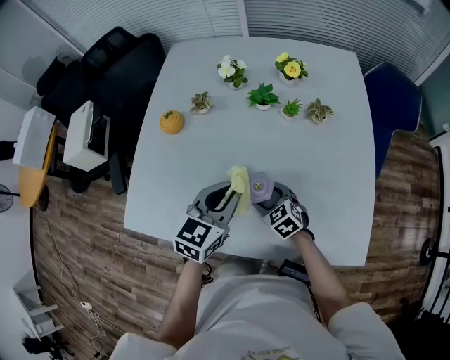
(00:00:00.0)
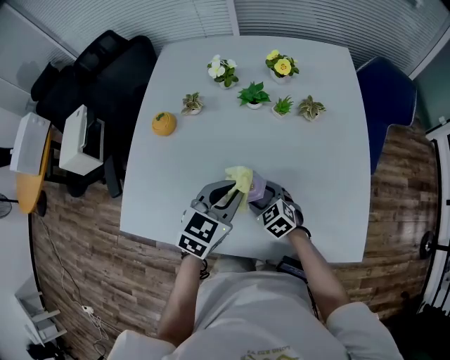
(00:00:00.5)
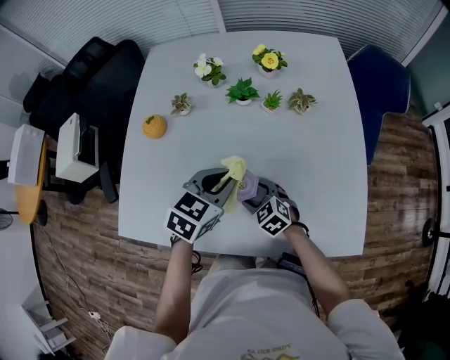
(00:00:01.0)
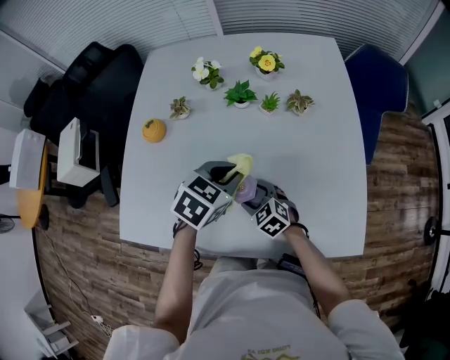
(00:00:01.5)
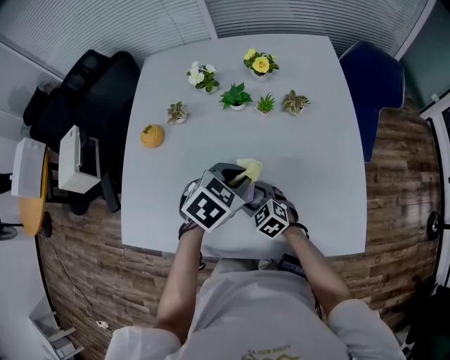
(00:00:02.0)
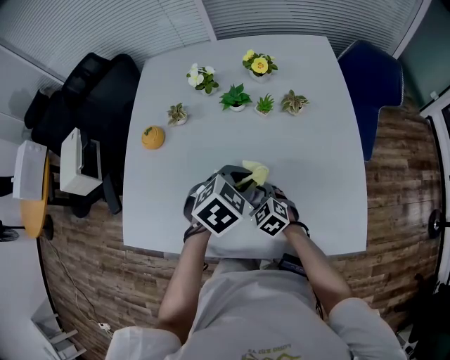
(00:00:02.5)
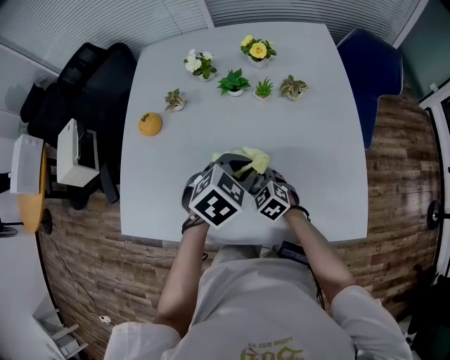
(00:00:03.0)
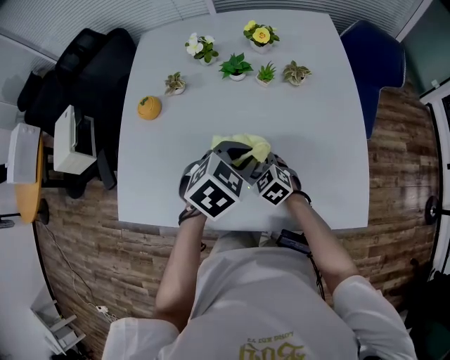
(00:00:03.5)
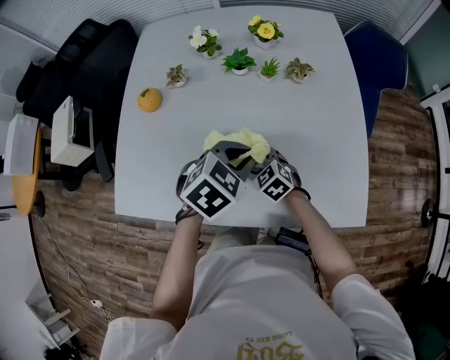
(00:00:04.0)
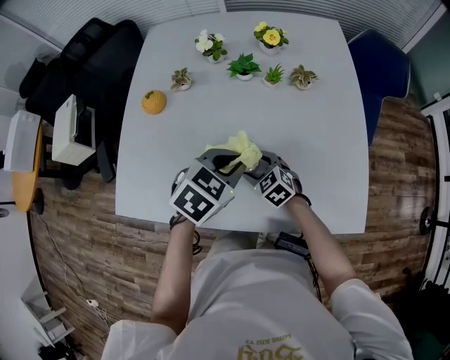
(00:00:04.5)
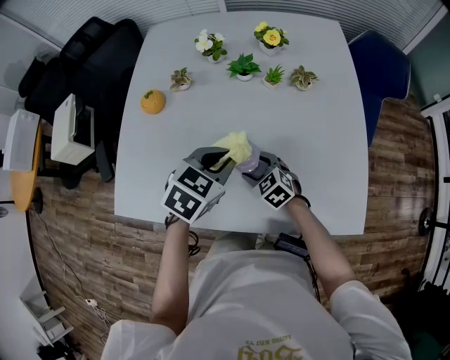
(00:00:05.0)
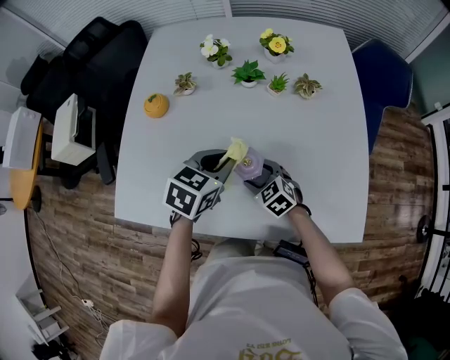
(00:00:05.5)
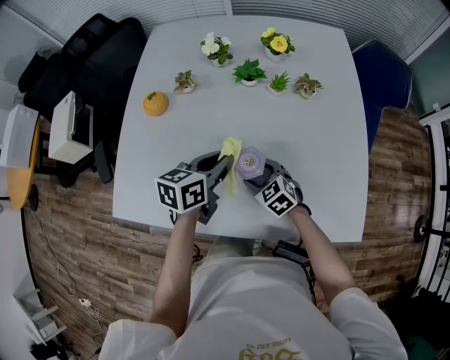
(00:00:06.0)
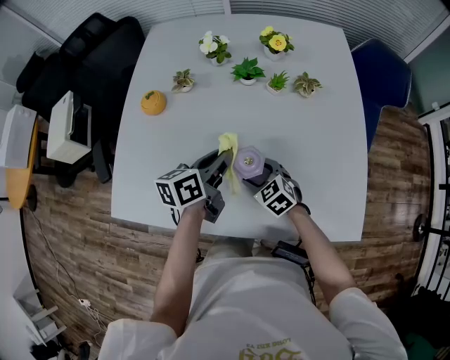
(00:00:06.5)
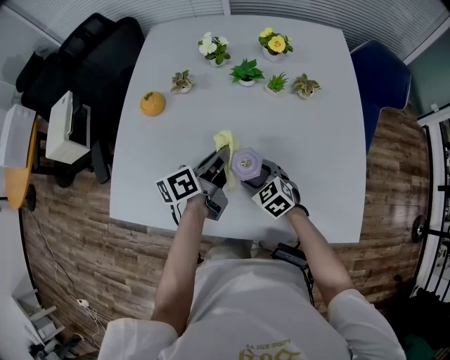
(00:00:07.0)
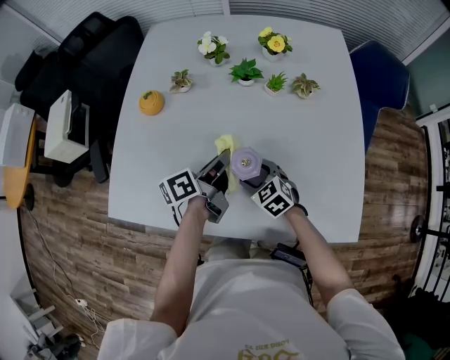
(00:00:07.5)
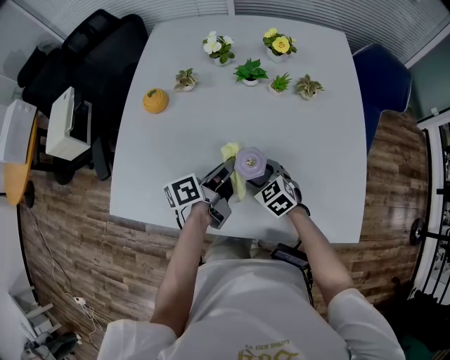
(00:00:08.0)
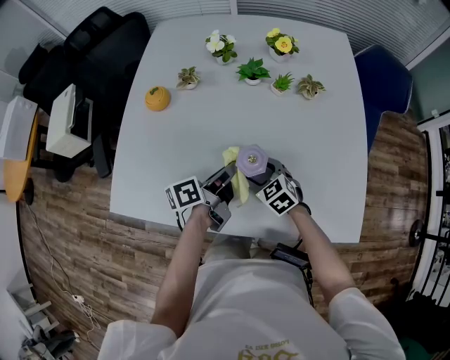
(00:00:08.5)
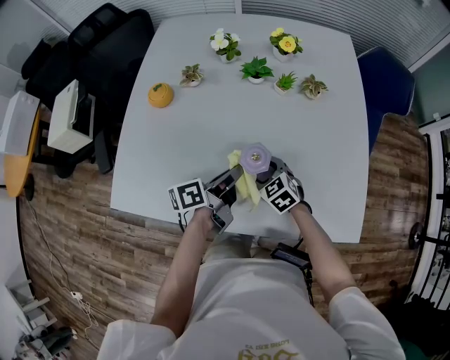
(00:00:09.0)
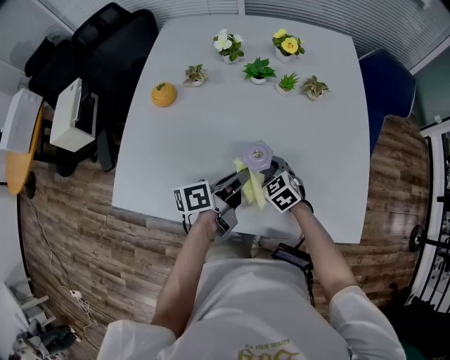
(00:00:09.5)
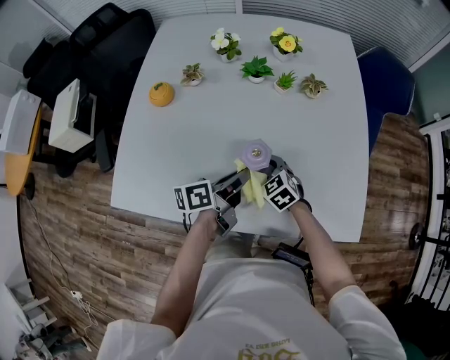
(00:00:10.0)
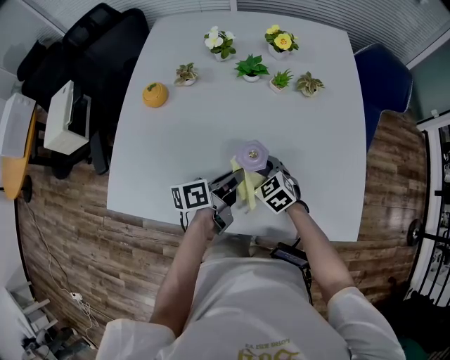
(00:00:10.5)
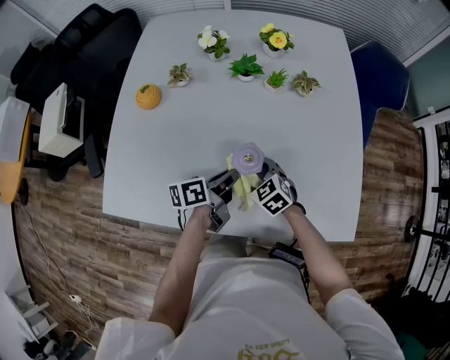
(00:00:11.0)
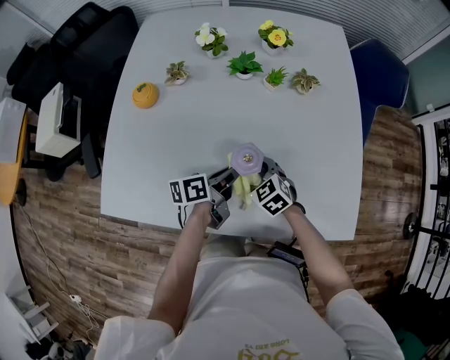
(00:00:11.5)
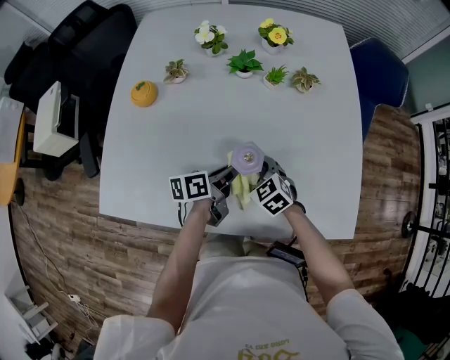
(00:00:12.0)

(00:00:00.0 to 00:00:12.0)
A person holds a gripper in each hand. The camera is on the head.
00:00:00.0 - 00:00:02.0: The left gripper goes some 10 cm to the right, and changes its angle by about 40 degrees.
00:00:02.0 - 00:00:04.0: The left gripper is displaced backward by roughly 5 cm.
00:00:04.0 - 00:00:06.0: The left gripper moves to the left, roughly 10 cm, and twists approximately 40 degrees counterclockwise, seen from behind.
00:00:06.0 - 00:00:08.0: The left gripper rotates roughly 40 degrees.
00:00:08.0 - 00:00:10.0: The left gripper moves roughly 5 cm.
00:00:10.0 - 00:00:12.0: The left gripper goes some 5 cm downward.

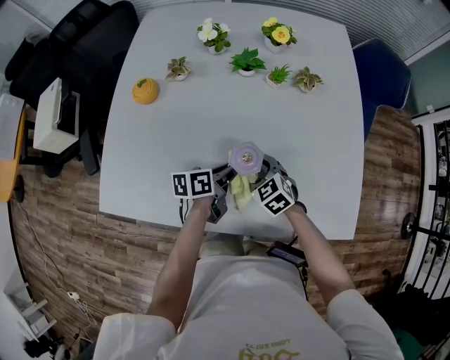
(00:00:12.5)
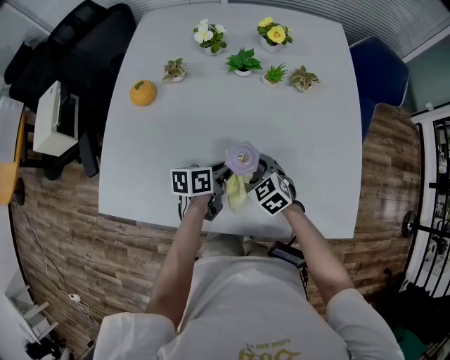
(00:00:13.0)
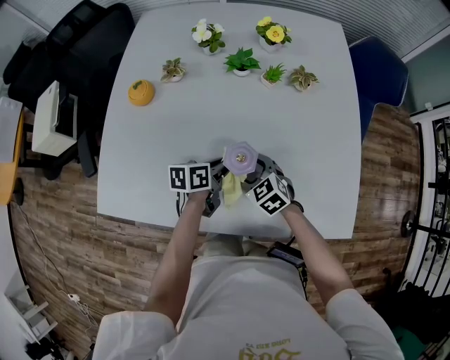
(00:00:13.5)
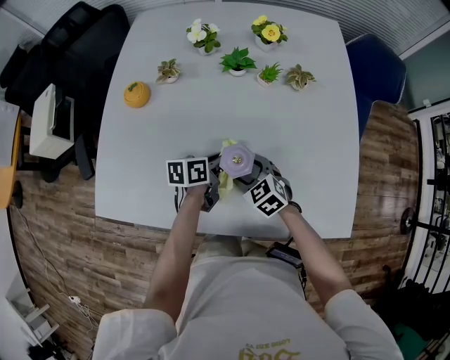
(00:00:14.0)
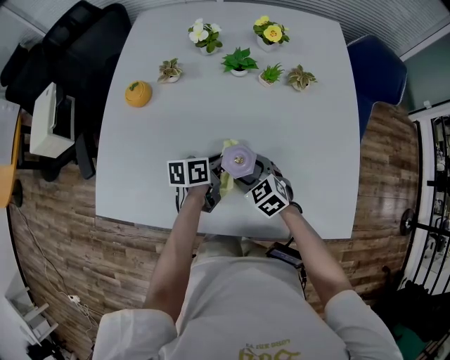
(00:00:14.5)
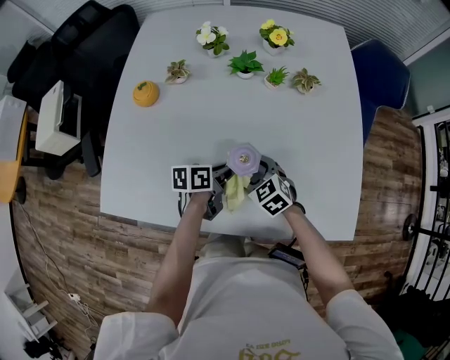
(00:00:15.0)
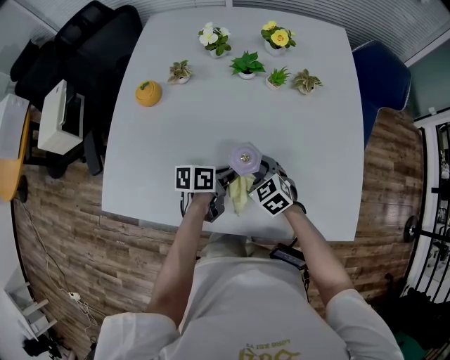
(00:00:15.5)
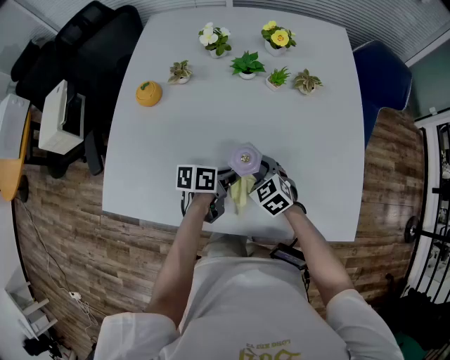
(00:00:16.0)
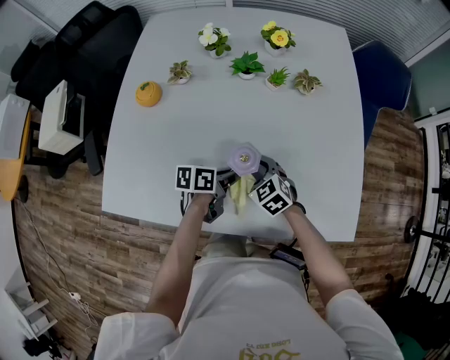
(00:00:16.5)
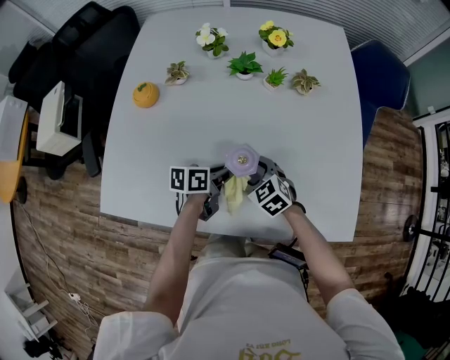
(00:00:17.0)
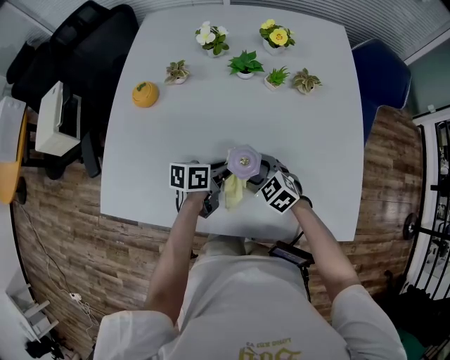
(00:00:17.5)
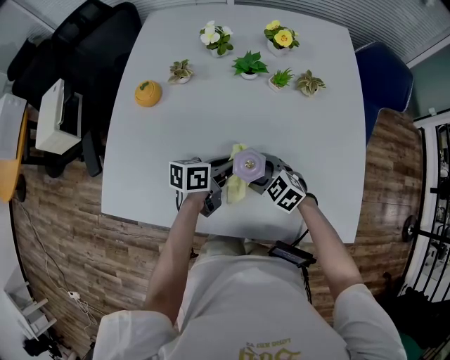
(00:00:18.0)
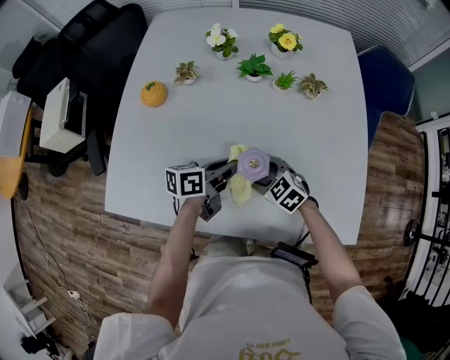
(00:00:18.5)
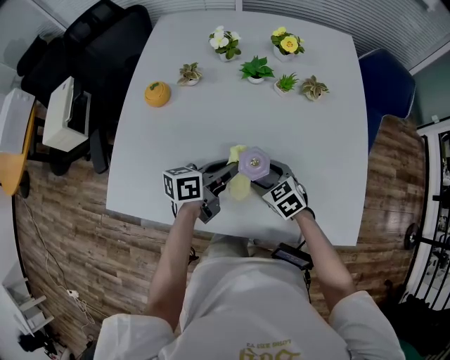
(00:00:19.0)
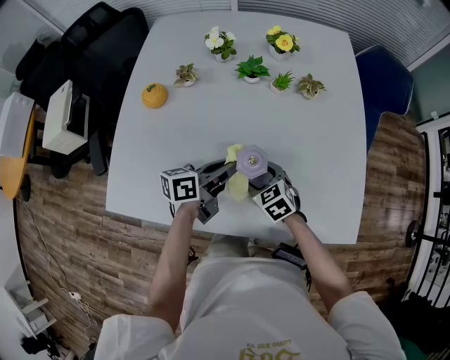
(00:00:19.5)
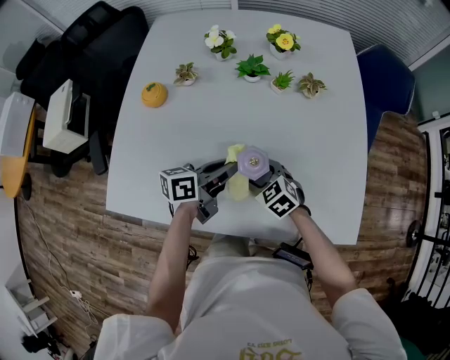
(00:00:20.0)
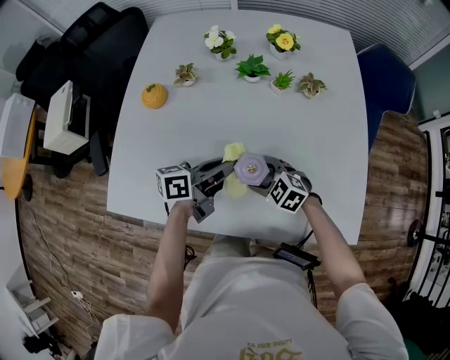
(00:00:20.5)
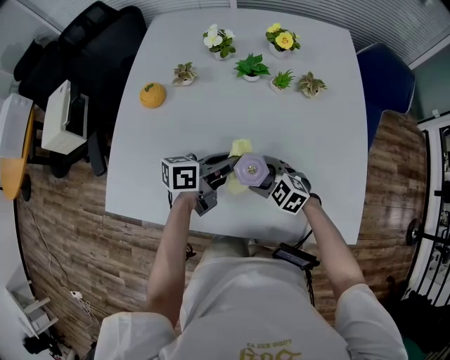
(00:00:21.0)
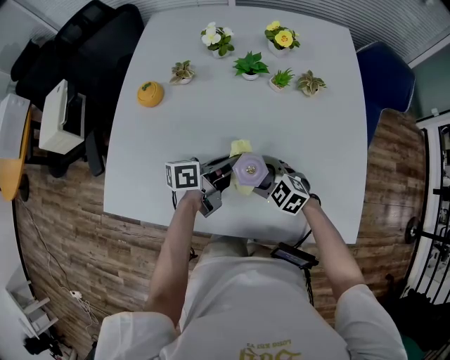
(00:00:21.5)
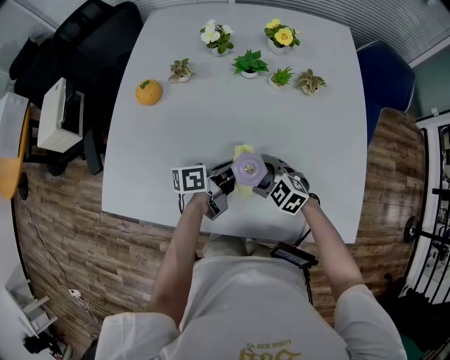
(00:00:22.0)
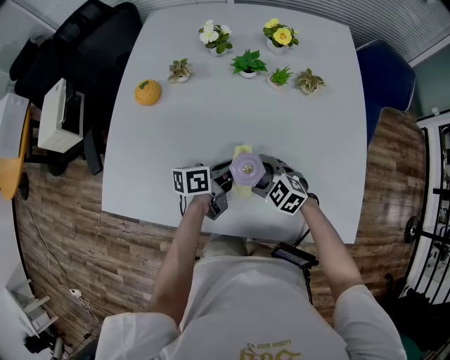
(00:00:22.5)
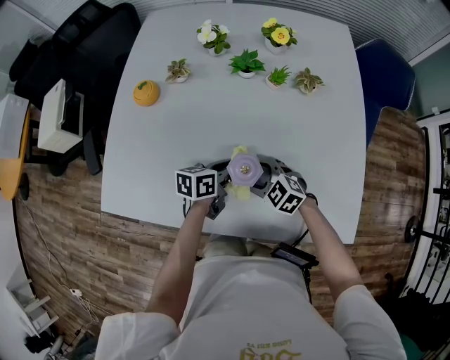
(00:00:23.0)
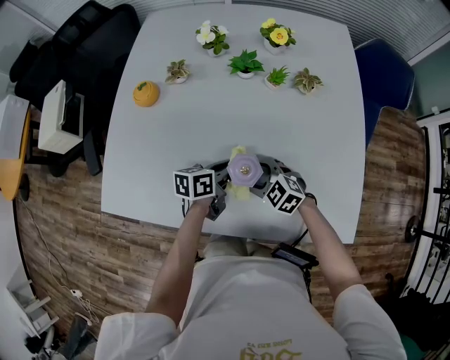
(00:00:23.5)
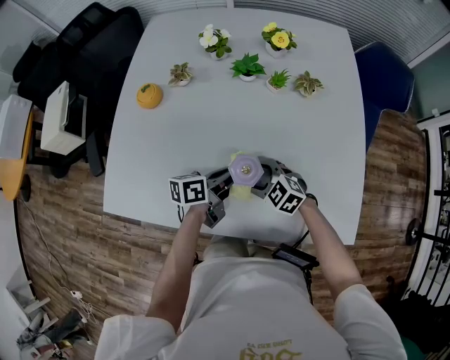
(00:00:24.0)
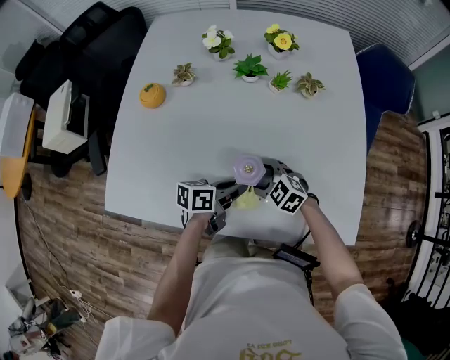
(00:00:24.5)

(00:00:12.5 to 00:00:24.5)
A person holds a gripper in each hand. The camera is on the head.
00:00:12.5 - 00:00:14.5: The grippers make only small movements.
00:00:14.5 - 00:00:16.5: The left gripper shifts approximately 5 cm backward.
00:00:16.5 - 00:00:18.5: The left gripper travels upward by about 5 cm.
00:00:18.5 - 00:00:20.5: The grippers make only small movements.
00:00:20.5 - 00:00:22.5: The left gripper moves downward, approximately 10 cm.
00:00:22.5 - 00:00:24.5: The left gripper moves approximately 5 cm.

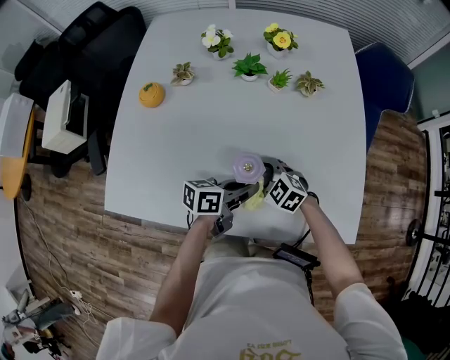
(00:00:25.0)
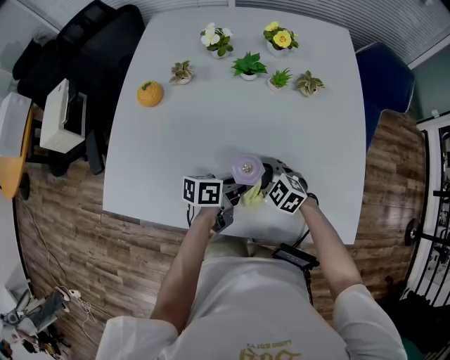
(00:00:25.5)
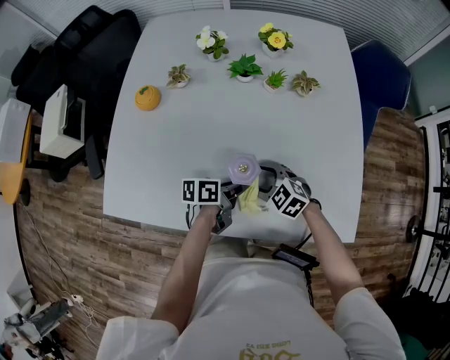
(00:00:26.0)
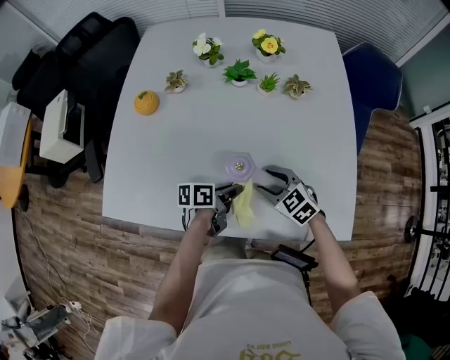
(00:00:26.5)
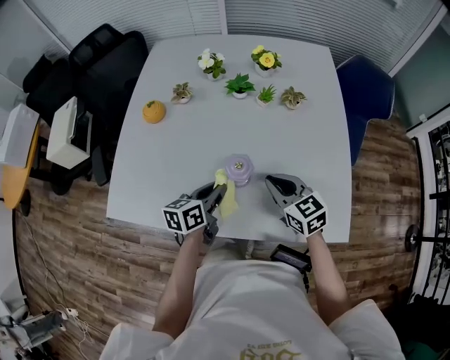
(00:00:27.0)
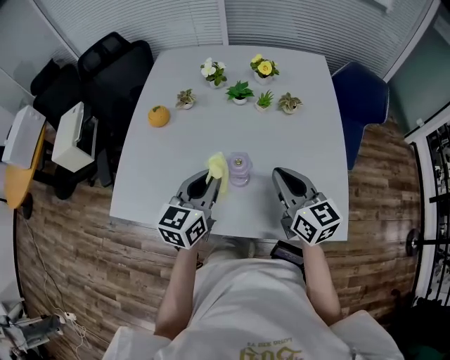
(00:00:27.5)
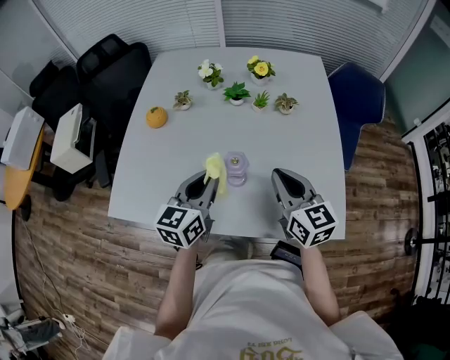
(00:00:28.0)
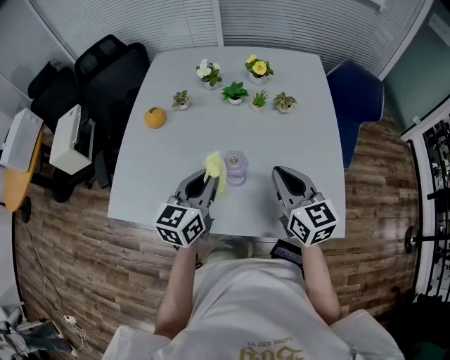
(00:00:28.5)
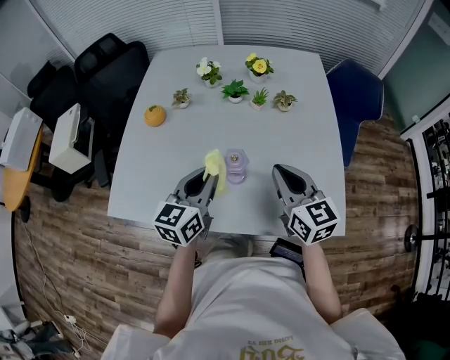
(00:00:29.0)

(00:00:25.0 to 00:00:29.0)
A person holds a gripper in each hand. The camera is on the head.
00:00:25.0 - 00:00:27.0: The left gripper shifts by some 10 cm, and turns by some 30 degrees; the right gripper travels upward by some 15 cm, changes its angle by roughly 40 degrees, and closes its fingers.
00:00:27.0 - 00:00:29.0: Both grippers travel together upward, roughly 10 cm. The left gripper changes its angle by roughly 30 degrees; the right gripper swivels roughly 20 degrees.
